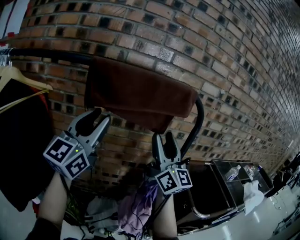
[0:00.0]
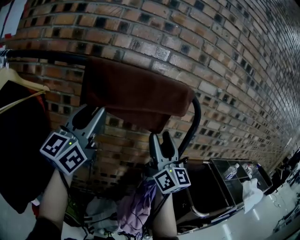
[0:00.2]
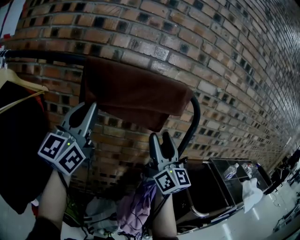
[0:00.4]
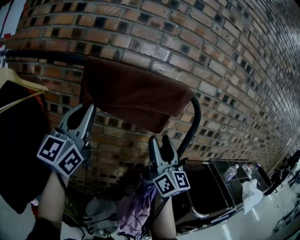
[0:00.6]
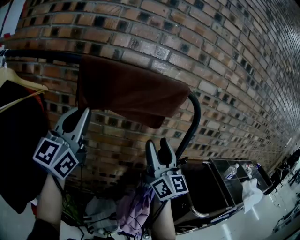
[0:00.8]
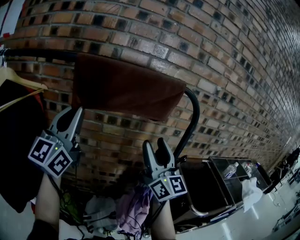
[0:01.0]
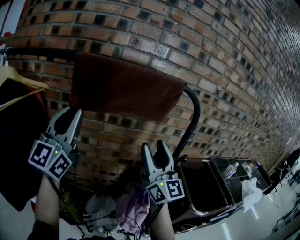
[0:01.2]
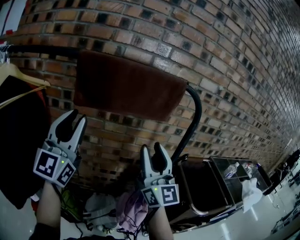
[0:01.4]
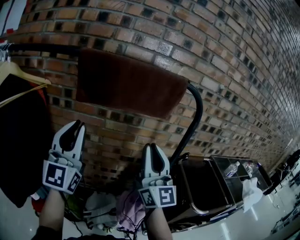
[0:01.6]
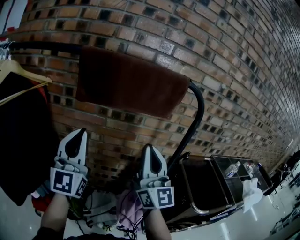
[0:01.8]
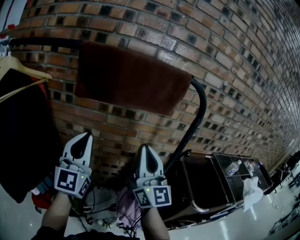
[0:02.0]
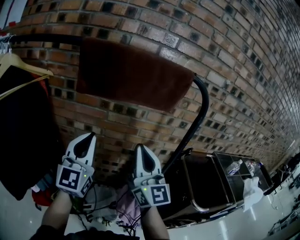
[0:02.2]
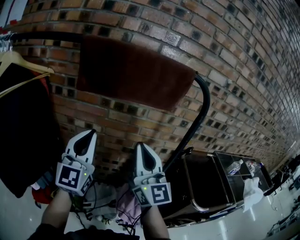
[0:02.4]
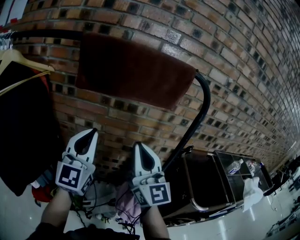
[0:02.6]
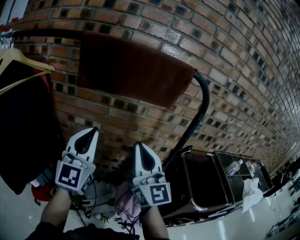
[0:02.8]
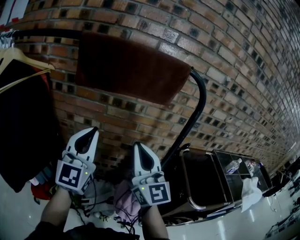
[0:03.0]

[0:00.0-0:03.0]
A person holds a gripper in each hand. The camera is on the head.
0:00.0 to 0:01.6: The left gripper heads downward, covering some 5 cm, rotates roughly 20 degrees, and closes its fingers. The right gripper is displaced backward by roughly 5 cm, and closes up.
0:01.6 to 0:03.0: The left gripper is displaced to the right and downward by roughly 10 cm, while the right gripper moves roughly 5 cm.

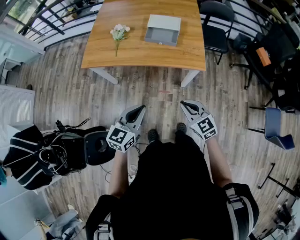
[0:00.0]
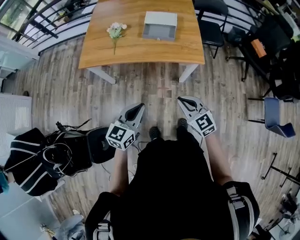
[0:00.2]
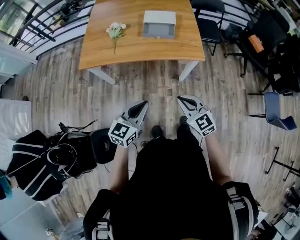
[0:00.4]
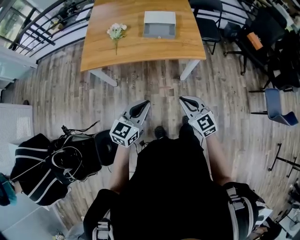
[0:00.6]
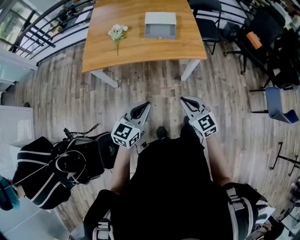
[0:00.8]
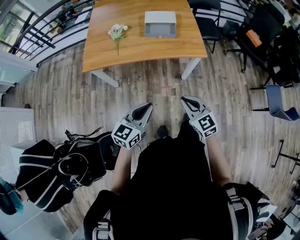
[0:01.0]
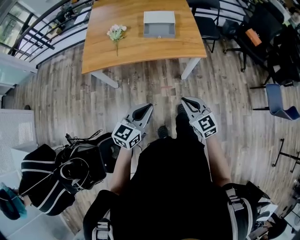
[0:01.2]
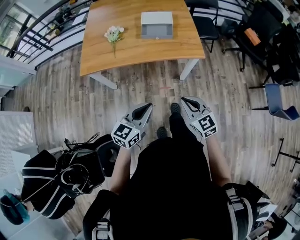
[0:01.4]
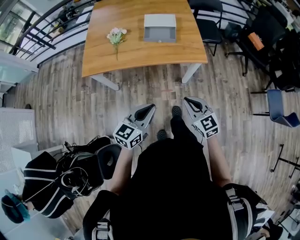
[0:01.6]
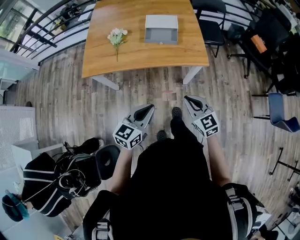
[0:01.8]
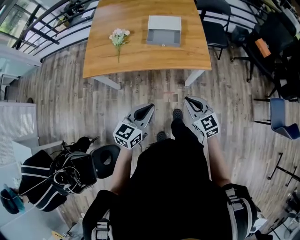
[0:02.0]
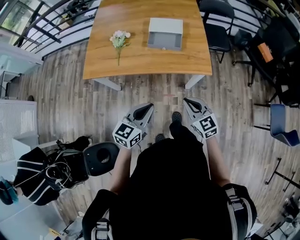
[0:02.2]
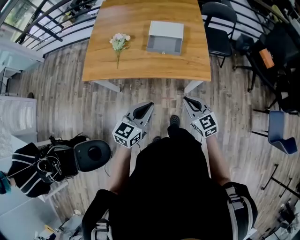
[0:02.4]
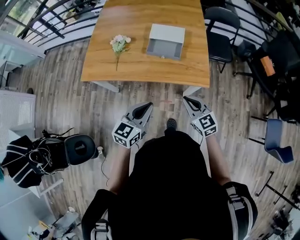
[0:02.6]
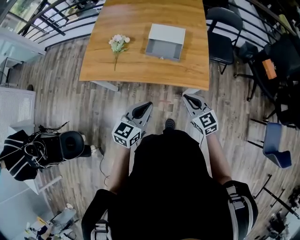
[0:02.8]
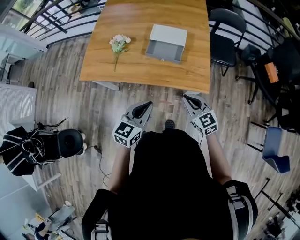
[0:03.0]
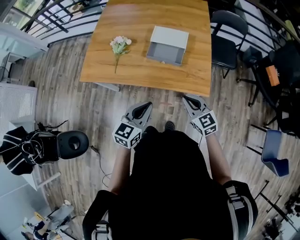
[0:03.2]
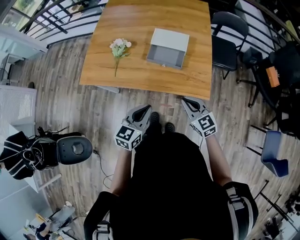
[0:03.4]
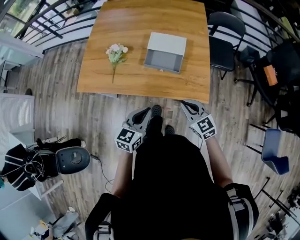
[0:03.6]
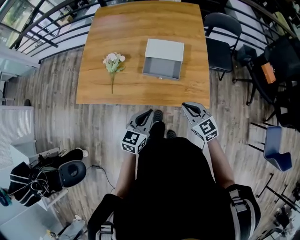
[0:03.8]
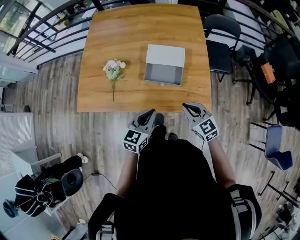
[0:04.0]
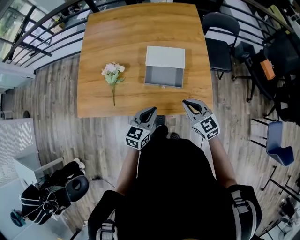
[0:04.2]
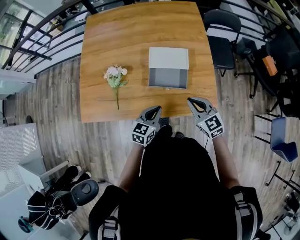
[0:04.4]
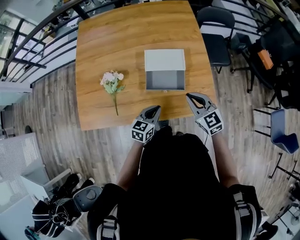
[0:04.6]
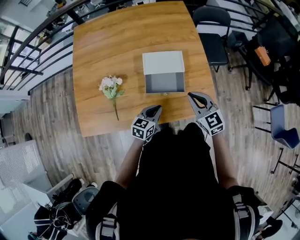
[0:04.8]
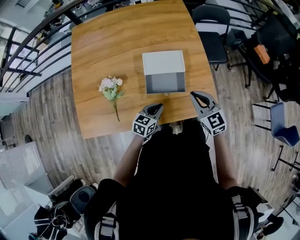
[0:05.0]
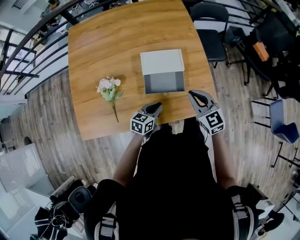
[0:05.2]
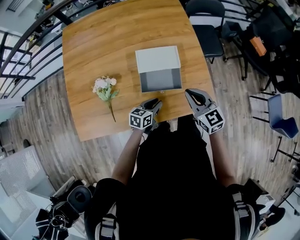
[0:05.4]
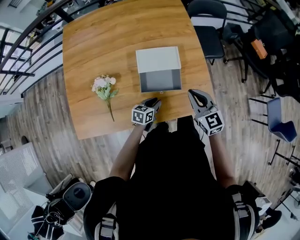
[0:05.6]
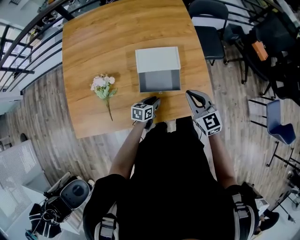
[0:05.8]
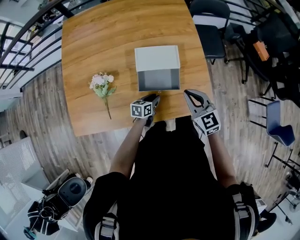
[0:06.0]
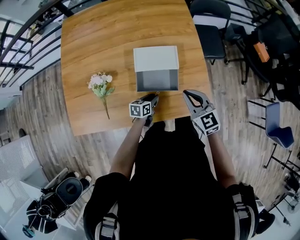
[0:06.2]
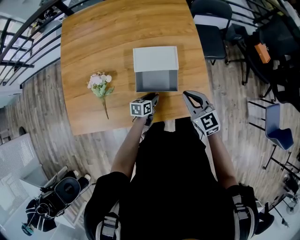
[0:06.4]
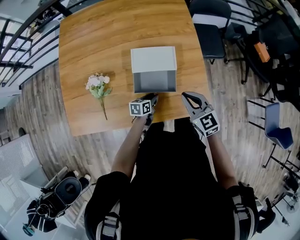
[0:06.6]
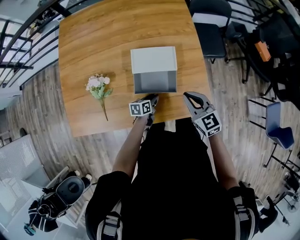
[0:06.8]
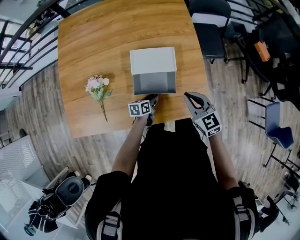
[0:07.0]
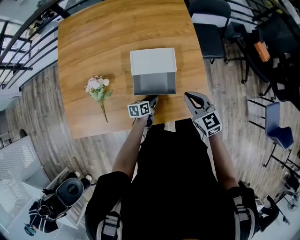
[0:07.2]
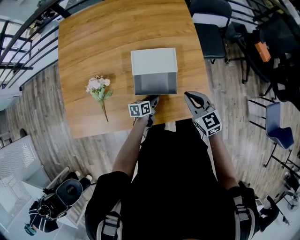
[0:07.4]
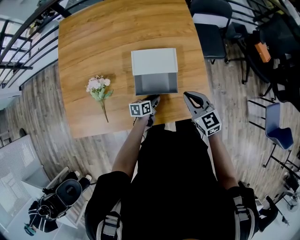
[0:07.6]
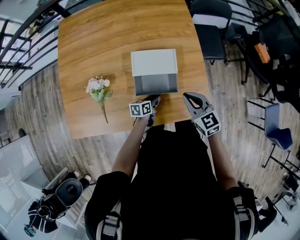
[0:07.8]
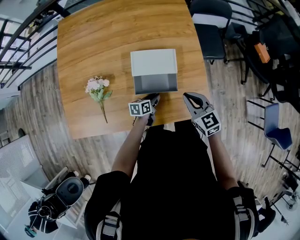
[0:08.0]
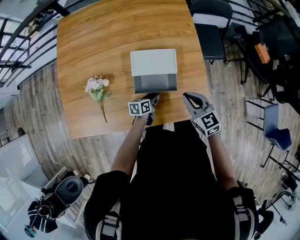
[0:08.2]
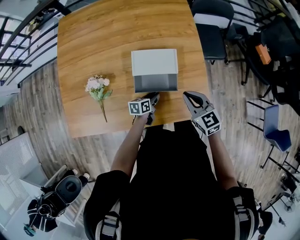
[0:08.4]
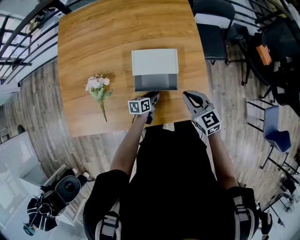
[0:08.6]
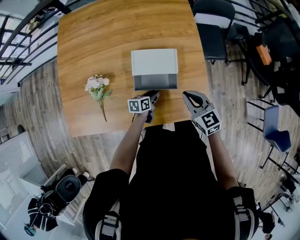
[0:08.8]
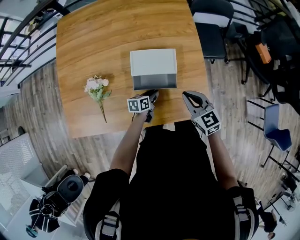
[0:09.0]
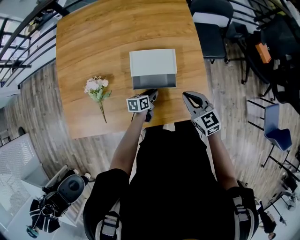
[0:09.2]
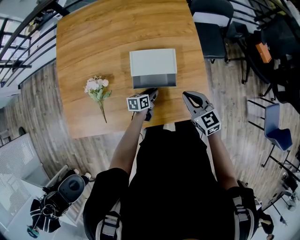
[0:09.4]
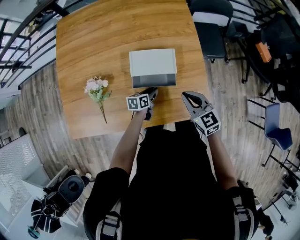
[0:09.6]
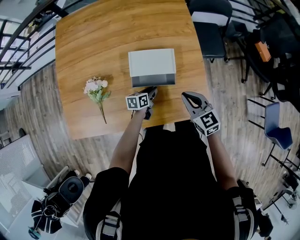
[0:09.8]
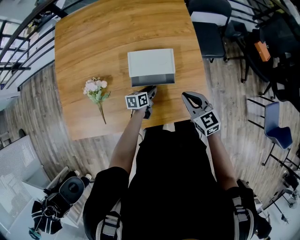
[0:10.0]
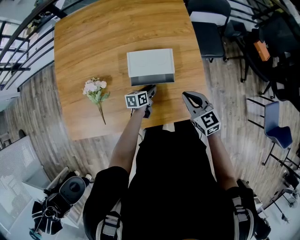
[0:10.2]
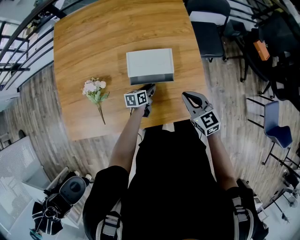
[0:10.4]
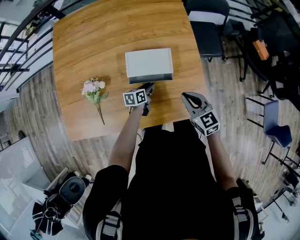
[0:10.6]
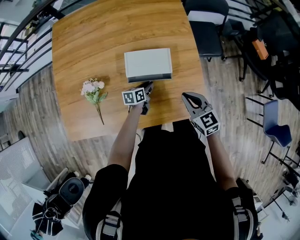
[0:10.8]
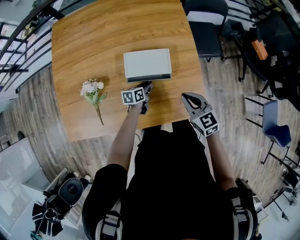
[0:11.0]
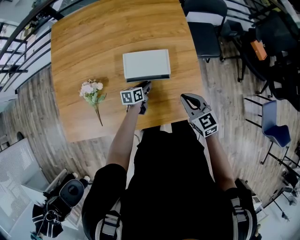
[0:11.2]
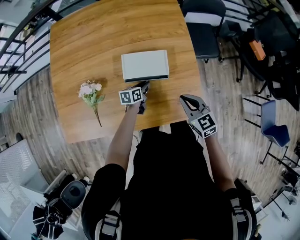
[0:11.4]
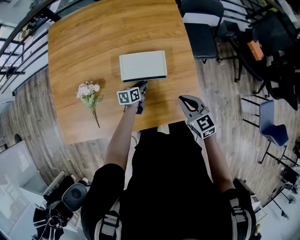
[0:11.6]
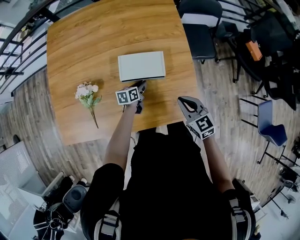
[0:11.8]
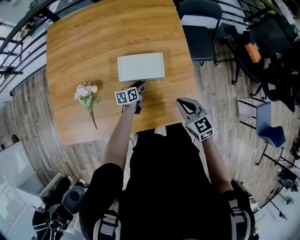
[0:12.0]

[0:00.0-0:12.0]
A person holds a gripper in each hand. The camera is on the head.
0:00.0 to 0:01.6: Both grippers travel together to the left, approximately 10 cm.
0:01.6 to 0:03.0: Both grippers move forward and to the right, approximately 25 cm.
0:03.0 to 0:04.4: The right gripper travels forward by roughly 25 cm. Meanwhile the left gripper moves forward and downward, roughly 30 cm.
0:04.4 to 0:06.0: The left gripper heads downward and forward, covering about 20 cm, and swivels about 30 degrees. Meanwhile the right gripper heads forward, covering roughly 10 cm.
0:06.0 to 0:07.6: The grippers move only a little.
0:07.6 to 0:09.0: The grippers make only small movements.
0:09.0 to 0:10.4: The grippers stay close to where they were, moving slightly.
0:10.4 to 0:12.0: There are only small adjustments of the grippers.

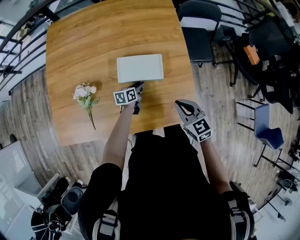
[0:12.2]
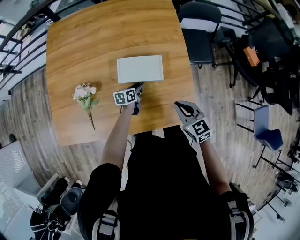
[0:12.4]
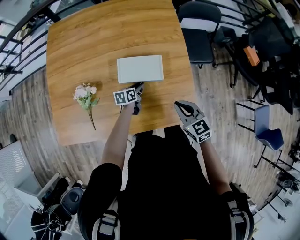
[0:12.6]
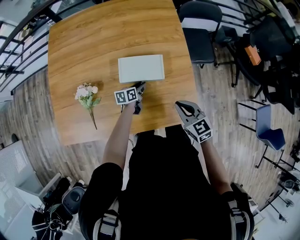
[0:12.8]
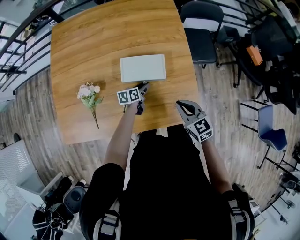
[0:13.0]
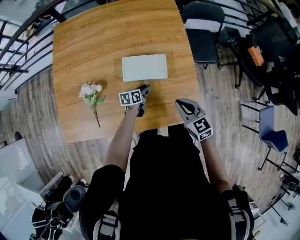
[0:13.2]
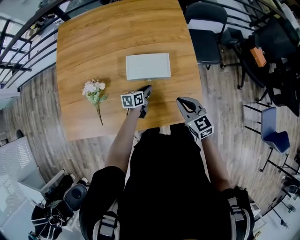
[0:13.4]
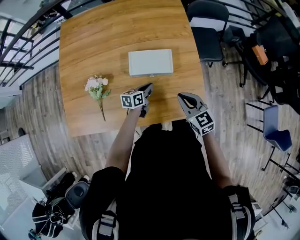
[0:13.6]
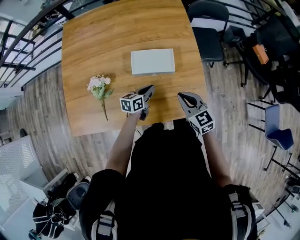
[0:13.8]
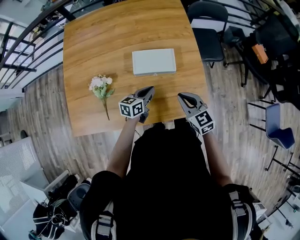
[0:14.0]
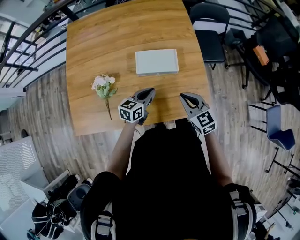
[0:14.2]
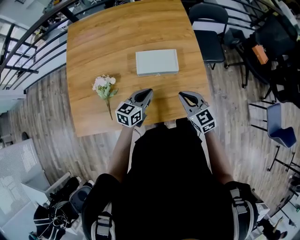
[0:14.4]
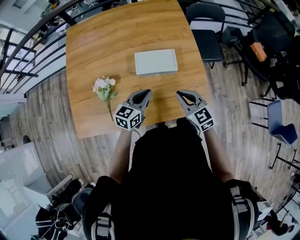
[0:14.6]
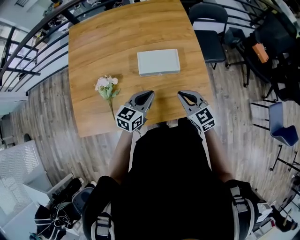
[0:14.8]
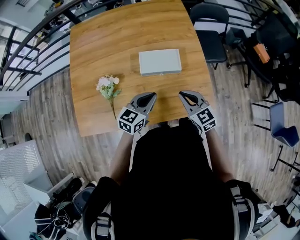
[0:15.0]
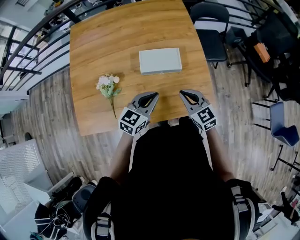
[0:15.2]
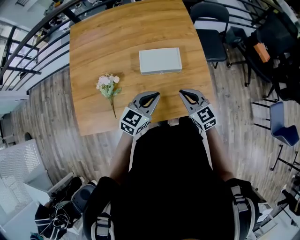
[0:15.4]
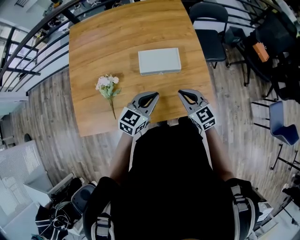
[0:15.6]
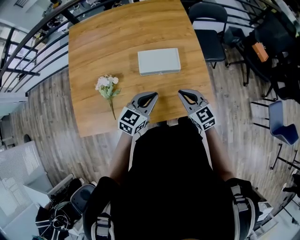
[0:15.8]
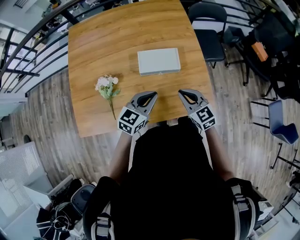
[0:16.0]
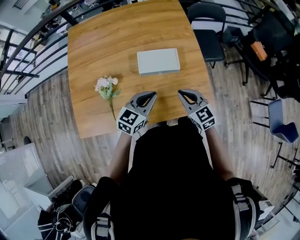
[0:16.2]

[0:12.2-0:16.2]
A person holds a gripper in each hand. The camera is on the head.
0:12.2 to 0:13.6: The left gripper heads upward and backward, covering some 10 cm.
0:13.6 to 0:14.8: The right gripper ends up roughly 5 cm from where it was, while the left gripper goes roughly 20 cm upward and backward, and rotates roughly 30 degrees.
0:14.8 to 0:16.2: The grippers stay close to where they were, moving slightly.

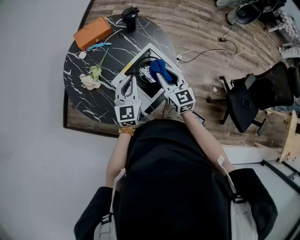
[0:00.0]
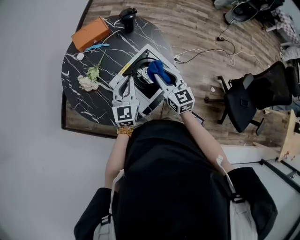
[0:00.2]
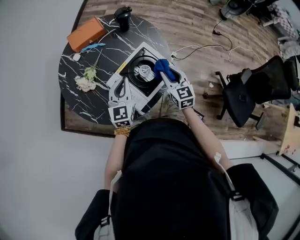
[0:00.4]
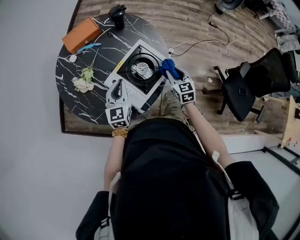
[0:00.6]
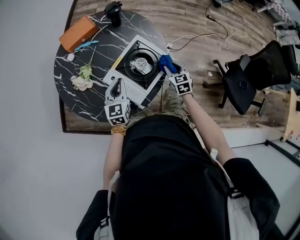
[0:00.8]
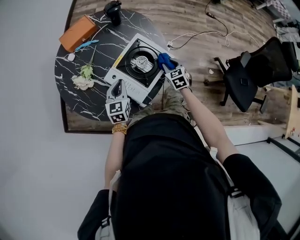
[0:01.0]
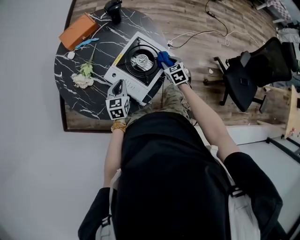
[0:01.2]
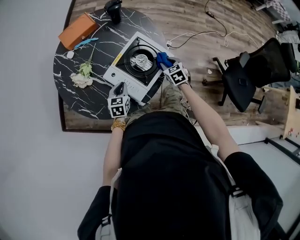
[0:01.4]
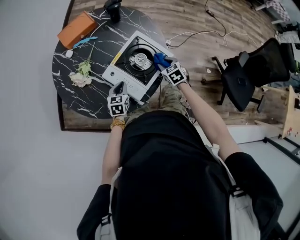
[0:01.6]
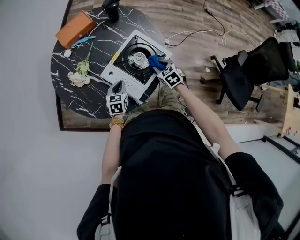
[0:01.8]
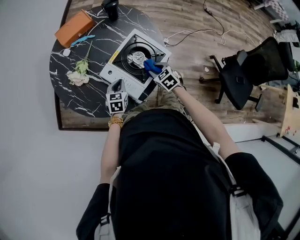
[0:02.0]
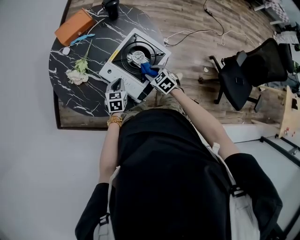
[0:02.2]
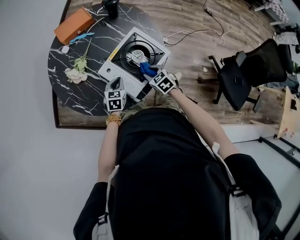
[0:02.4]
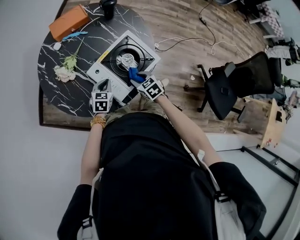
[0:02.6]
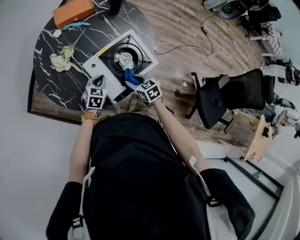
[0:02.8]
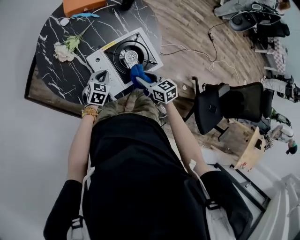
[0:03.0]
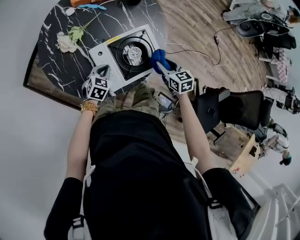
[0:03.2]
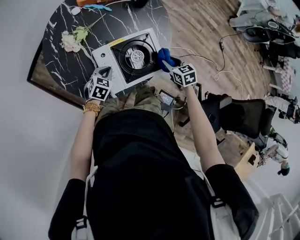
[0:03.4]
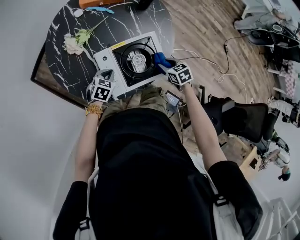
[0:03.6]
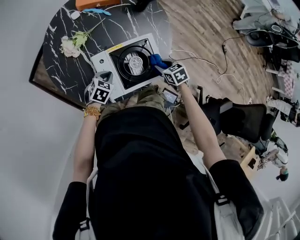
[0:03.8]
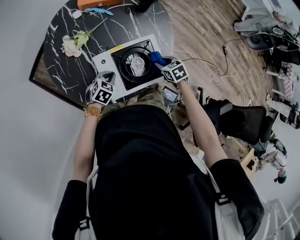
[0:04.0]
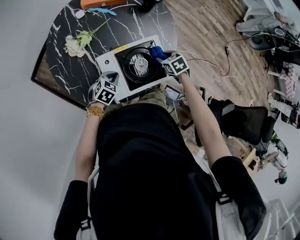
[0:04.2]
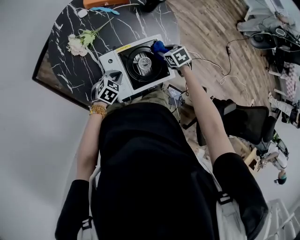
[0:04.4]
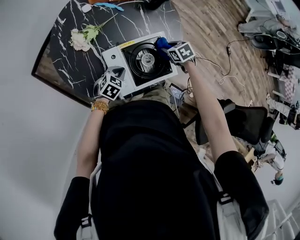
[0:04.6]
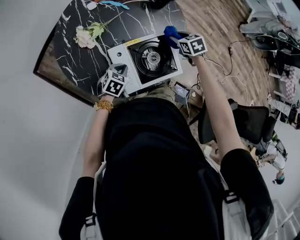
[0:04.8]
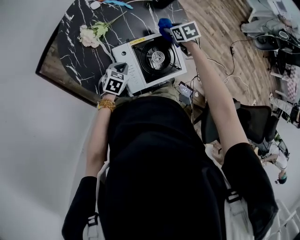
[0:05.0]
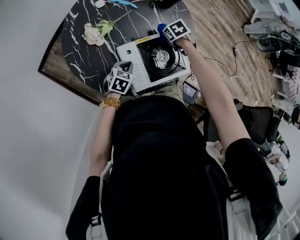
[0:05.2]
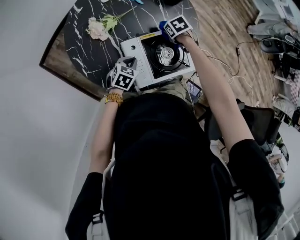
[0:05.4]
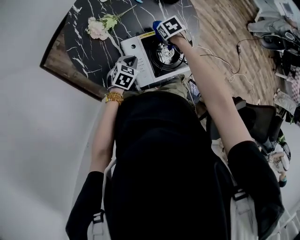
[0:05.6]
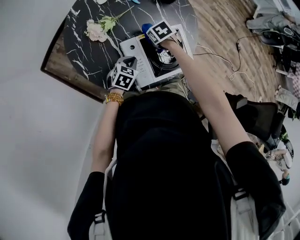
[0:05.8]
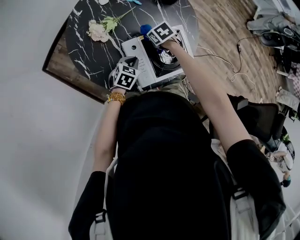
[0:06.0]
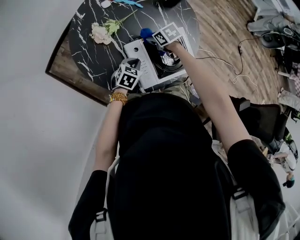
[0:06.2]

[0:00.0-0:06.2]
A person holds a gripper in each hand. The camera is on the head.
0:00.0 to 0:01.6: The two grippers go about 20 cm downward. The right gripper angles its fingers downward, by approximately 40 degrees. The left gripper angles its fingers downward, by about 30 degrees.
0:01.6 to 0:03.2: The right gripper shifts some 5 cm upward, goes to the left and returns, some 10 cm each way, and changes its angle by some 20 degrees.
0:03.2 to 0:04.6: The right gripper is displaced forward and downward by some 15 cm, and changes its angle by about 30 degrees.
0:04.6 to 0:06.2: The right gripper shifts by approximately 20 cm.
